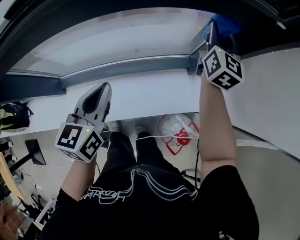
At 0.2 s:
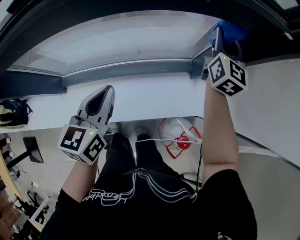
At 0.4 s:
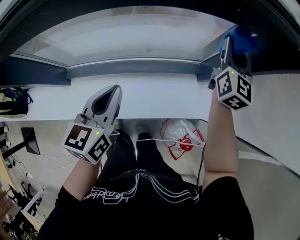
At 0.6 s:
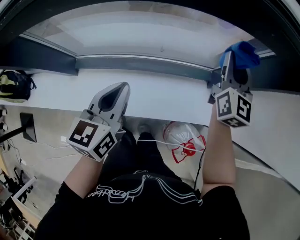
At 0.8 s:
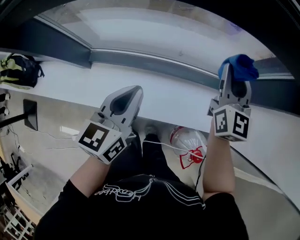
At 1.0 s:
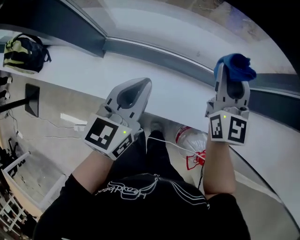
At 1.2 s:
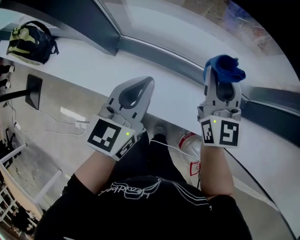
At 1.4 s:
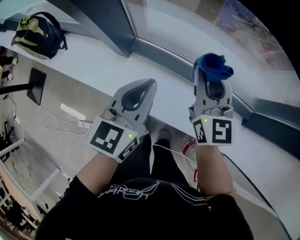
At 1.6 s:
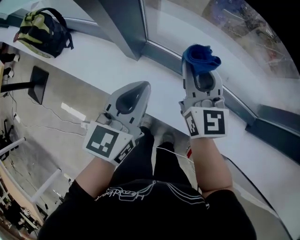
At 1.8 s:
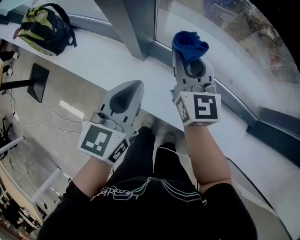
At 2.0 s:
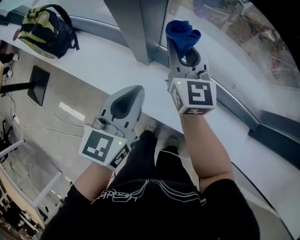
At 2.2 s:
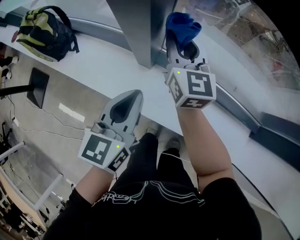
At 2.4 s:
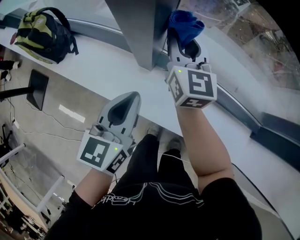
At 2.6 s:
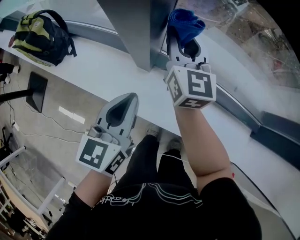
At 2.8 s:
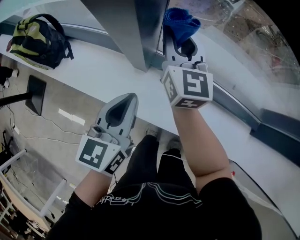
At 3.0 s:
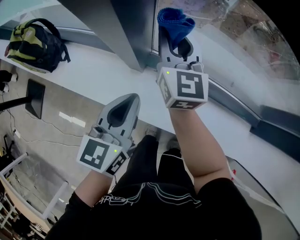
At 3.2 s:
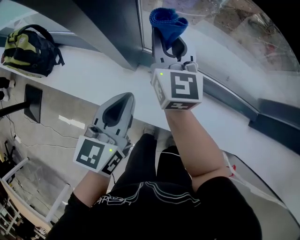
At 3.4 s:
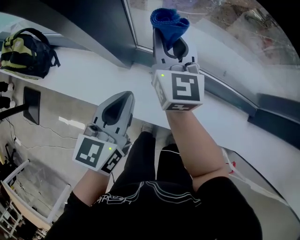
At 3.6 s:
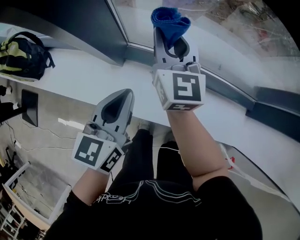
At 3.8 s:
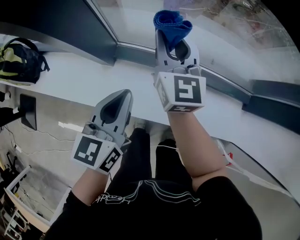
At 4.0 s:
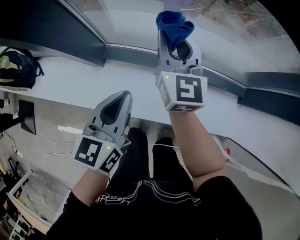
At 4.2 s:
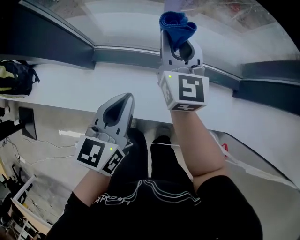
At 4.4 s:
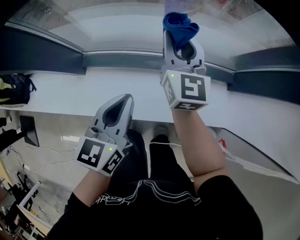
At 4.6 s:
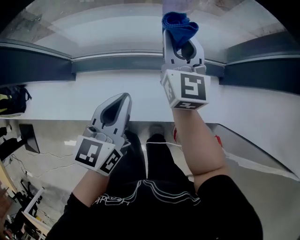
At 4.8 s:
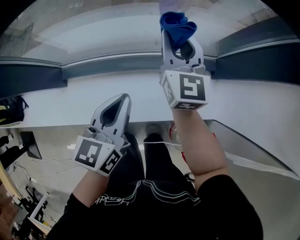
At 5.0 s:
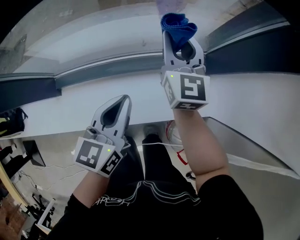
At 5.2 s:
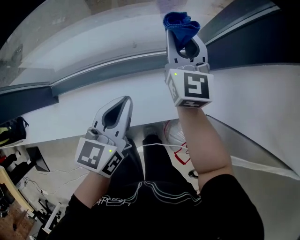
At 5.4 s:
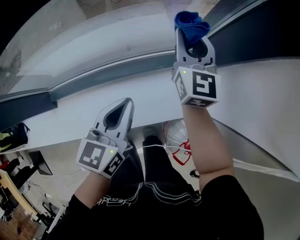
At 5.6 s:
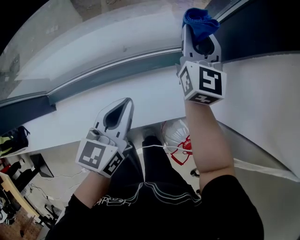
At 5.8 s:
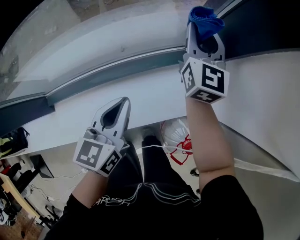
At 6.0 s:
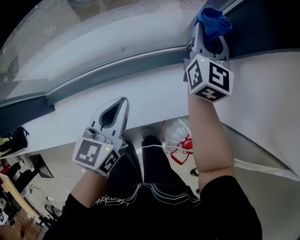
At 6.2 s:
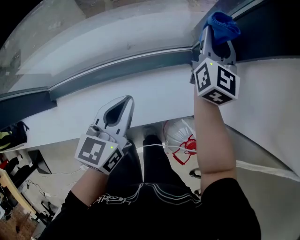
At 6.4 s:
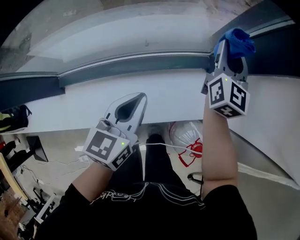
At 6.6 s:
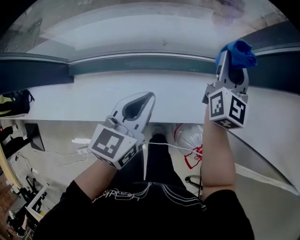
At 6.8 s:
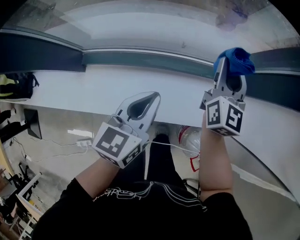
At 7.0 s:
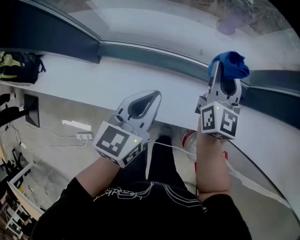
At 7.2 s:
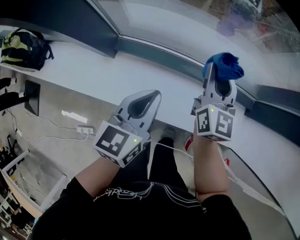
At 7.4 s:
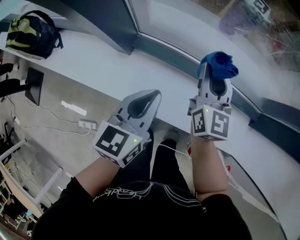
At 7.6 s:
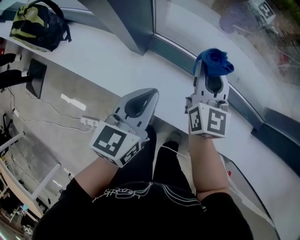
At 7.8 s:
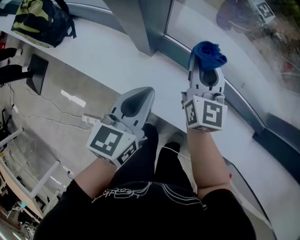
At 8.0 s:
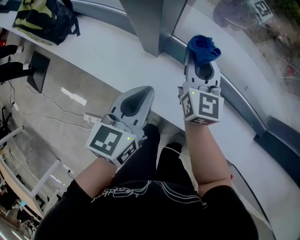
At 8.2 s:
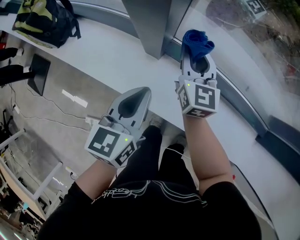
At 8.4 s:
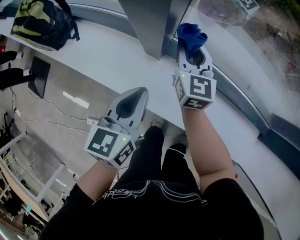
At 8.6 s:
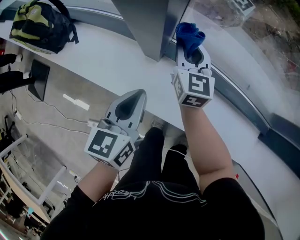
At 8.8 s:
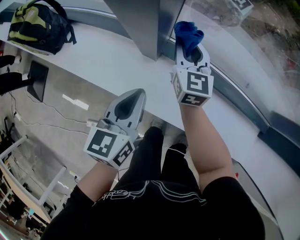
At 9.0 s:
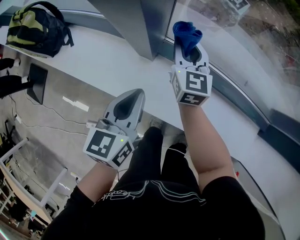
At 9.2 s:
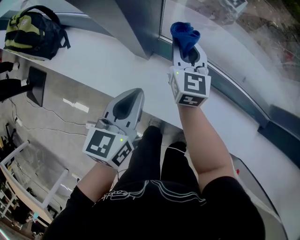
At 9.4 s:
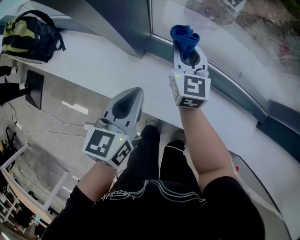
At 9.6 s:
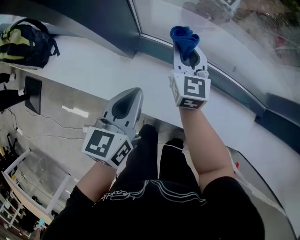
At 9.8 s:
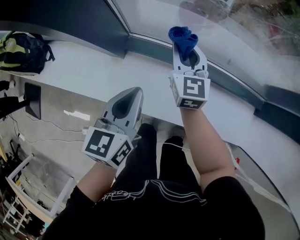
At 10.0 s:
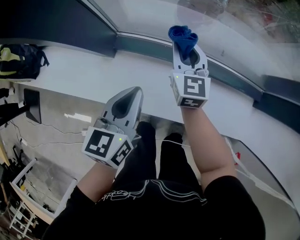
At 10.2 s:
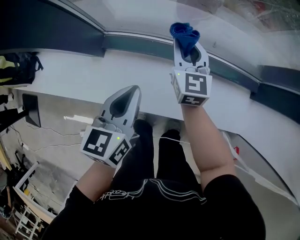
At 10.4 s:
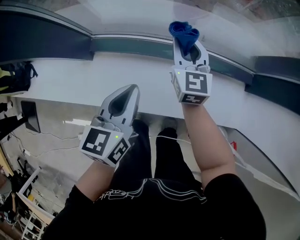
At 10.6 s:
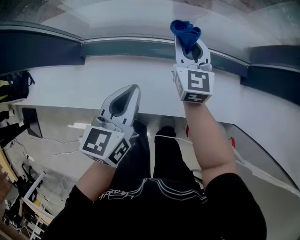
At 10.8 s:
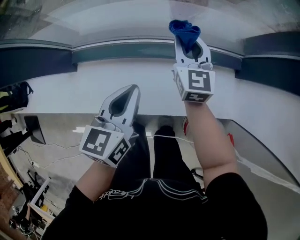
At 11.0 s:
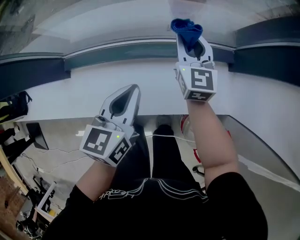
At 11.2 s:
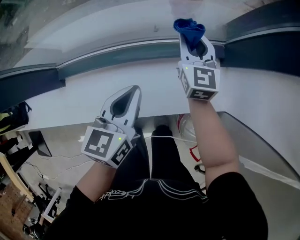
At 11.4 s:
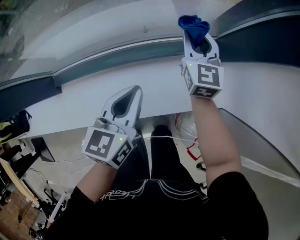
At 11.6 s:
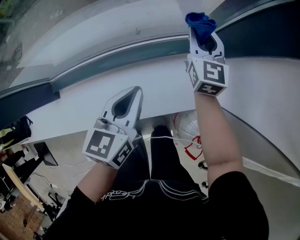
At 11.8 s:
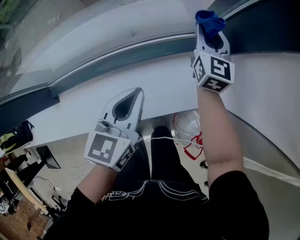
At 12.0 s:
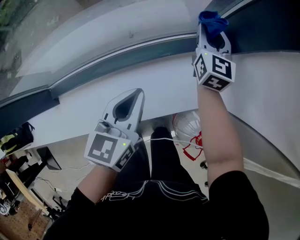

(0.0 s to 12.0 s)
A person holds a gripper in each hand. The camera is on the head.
0.0 s - 1.6 s: The right gripper shifts by some 60 cm, and rotates some 50 degrees. The left gripper shifts by about 35 cm, and turns by about 30 degrees.
1.6 s - 3.0 s: The right gripper moves forward and to the left, about 20 cm. The left gripper travels to the left by some 10 cm.
3.0 s - 4.4 s: Both grippers move to the right, roughly 35 cm.
4.4 s - 6.0 s: The left gripper ends up about 25 cm from where it was; the right gripper ends up about 40 cm from where it was, and rotates roughly 30 degrees.
6.0 s - 7.6 s: Both grippers are carried roughly 60 cm. The right gripper turns by roughly 50 degrees, while the left gripper rotates approximately 30 degrees.
7.6 s - 9.0 s: The right gripper is displaced to the left, downward and forward by some 20 cm. The left gripper heads to the left, covering about 10 cm.
9.0 s - 10.4 s: Both grippers travel together to the right, approximately 30 cm.
10.4 s - 12.0 s: The left gripper moves about 30 cm, and turns by roughly 30 degrees; the right gripper moves some 40 cm, and swivels about 30 degrees.

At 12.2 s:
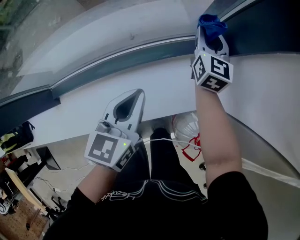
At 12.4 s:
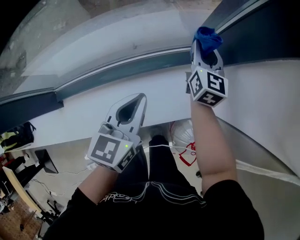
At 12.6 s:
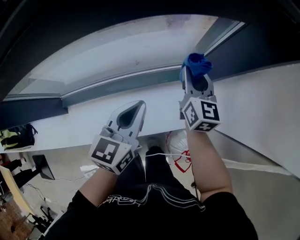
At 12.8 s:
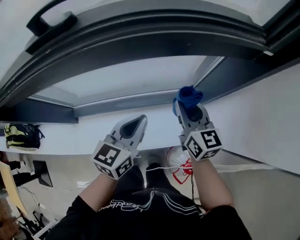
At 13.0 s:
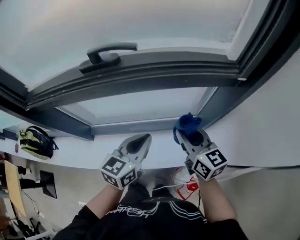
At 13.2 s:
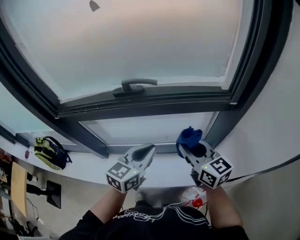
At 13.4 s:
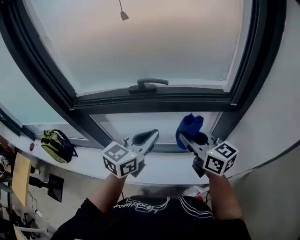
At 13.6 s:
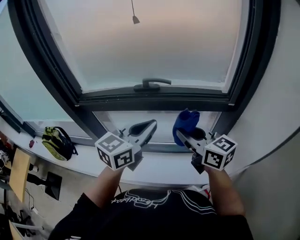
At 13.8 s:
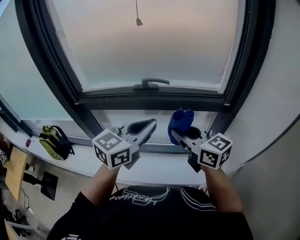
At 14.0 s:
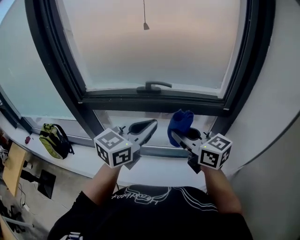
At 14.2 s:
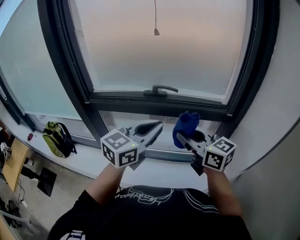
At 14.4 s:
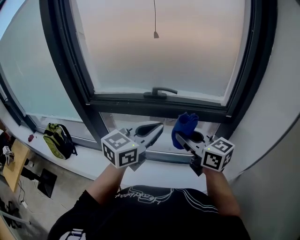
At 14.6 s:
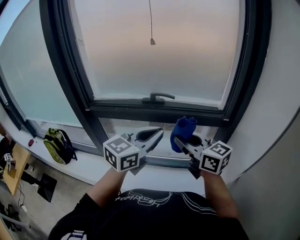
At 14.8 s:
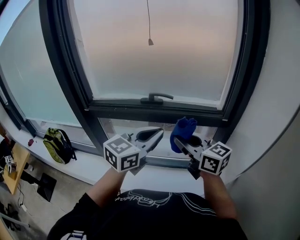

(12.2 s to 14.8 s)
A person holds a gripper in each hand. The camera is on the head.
12.2 s - 13.4 s: Both grippers travel together upward, some 40 cm. The right gripper swivels roughly 60 degrees. Meanwhile the left gripper turns by approximately 20 degrees.
13.4 s - 14.8 s: The grippers both shift upward and backward by roughly 10 cm.

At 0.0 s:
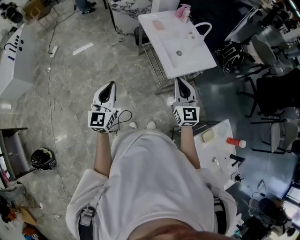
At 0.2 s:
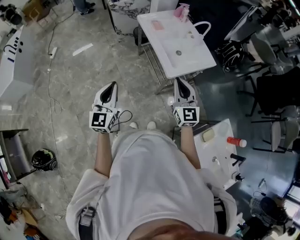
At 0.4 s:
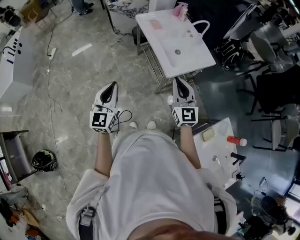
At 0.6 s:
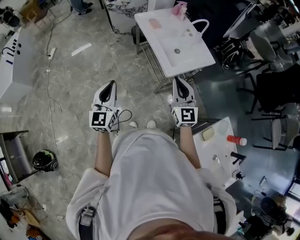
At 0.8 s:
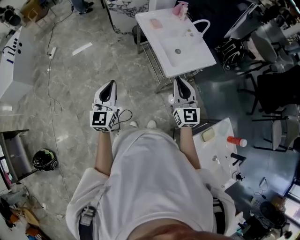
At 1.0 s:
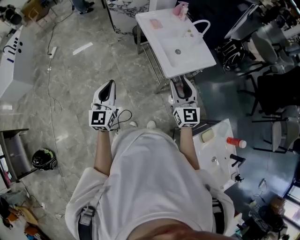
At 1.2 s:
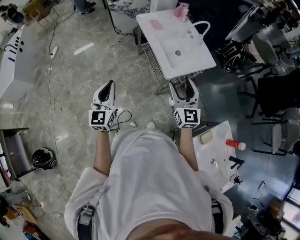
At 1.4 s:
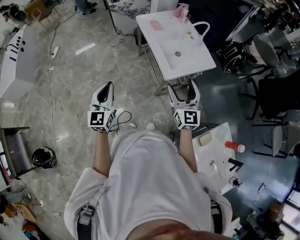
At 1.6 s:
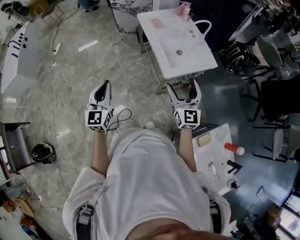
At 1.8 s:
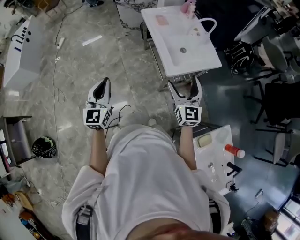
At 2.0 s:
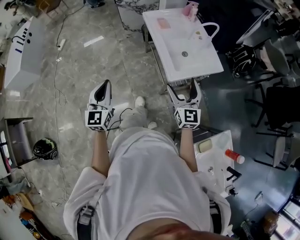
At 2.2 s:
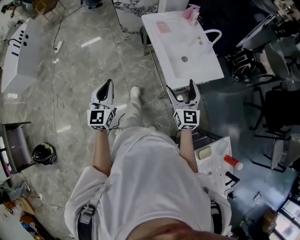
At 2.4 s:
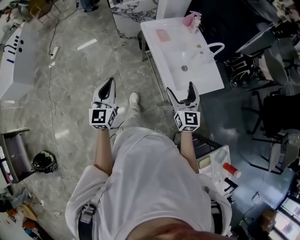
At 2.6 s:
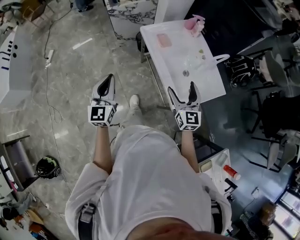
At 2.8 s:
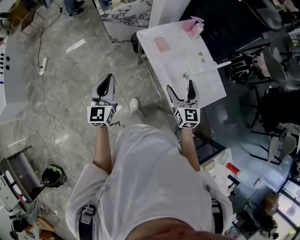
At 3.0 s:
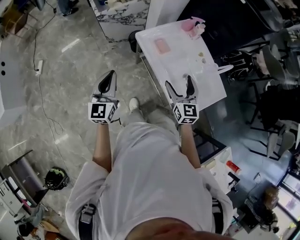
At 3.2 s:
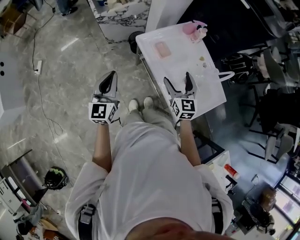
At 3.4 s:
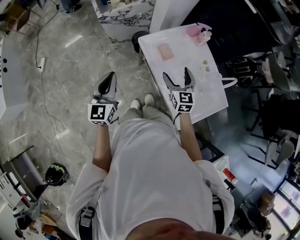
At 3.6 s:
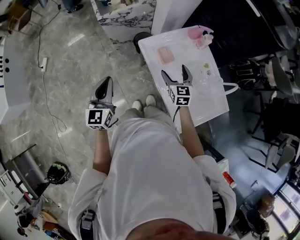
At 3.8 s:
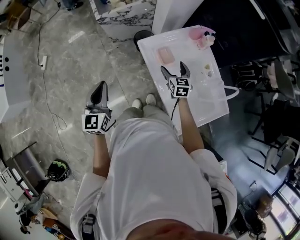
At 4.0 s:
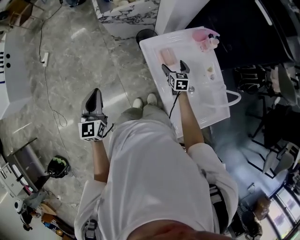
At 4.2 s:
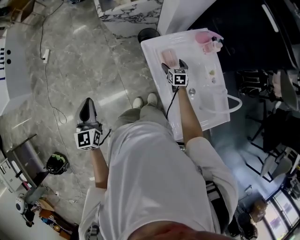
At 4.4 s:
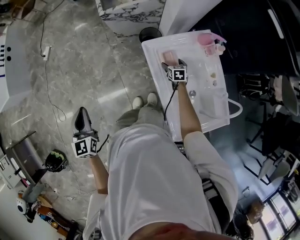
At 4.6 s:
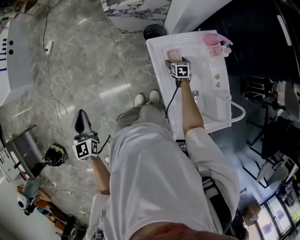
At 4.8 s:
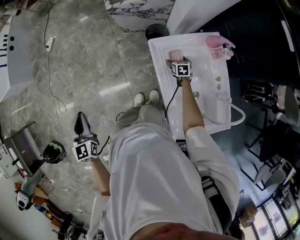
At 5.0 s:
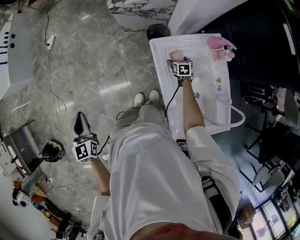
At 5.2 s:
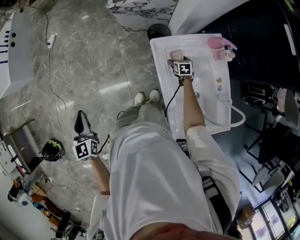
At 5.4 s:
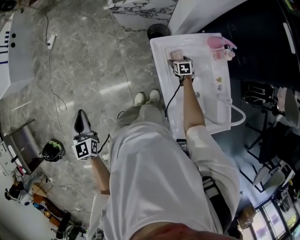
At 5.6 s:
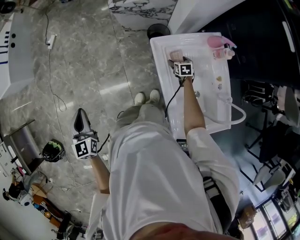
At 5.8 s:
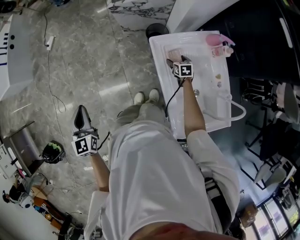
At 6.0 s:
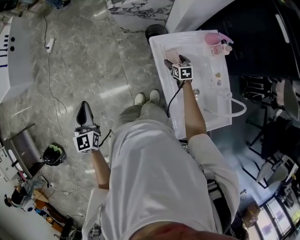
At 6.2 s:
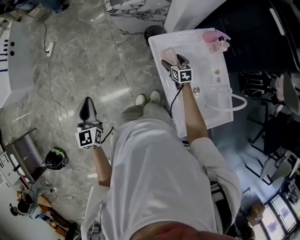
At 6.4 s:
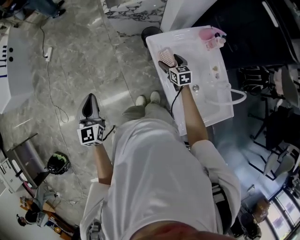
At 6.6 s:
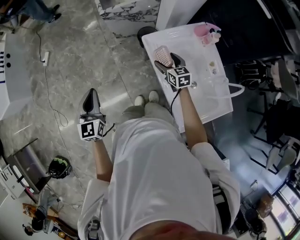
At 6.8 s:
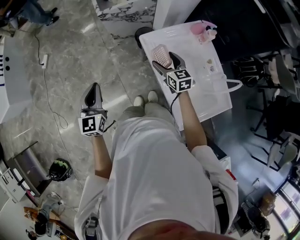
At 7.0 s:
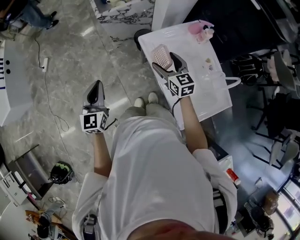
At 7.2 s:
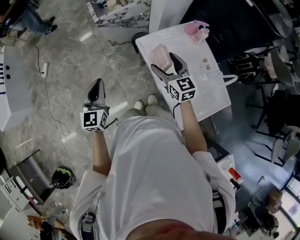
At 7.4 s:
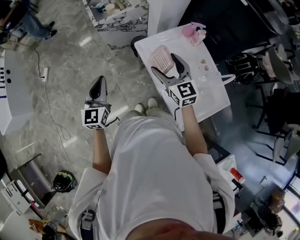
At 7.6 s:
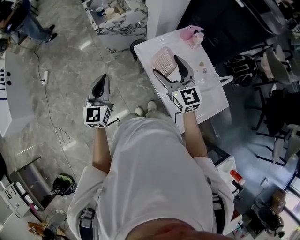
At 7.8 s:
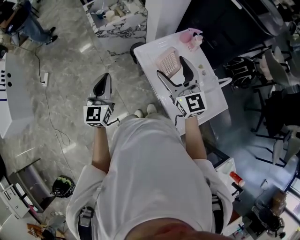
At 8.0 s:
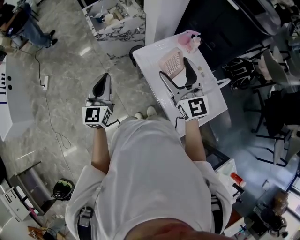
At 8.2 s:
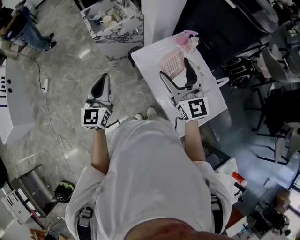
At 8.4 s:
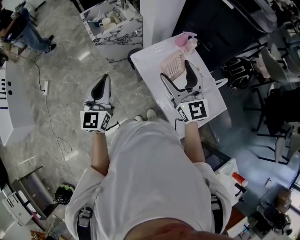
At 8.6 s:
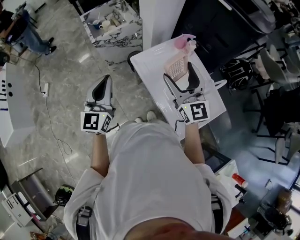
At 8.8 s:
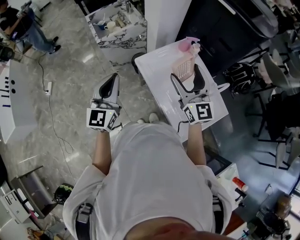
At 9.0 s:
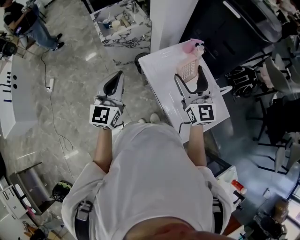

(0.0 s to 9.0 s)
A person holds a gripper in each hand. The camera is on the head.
0.0 s - 1.6 s: The right gripper goes some 5 cm to the right, and opens.
1.6 s - 3.0 s: Both grippers move forward, roughly 40 cm.
3.0 s - 4.4 s: The left gripper shifts roughly 10 cm to the left, and turns by about 30 degrees; the right gripper heads downward and forward, covering approximately 40 cm, and angles its fingers downward, by roughly 40 degrees.
4.4 s - 6.0 s: The right gripper shifts by approximately 5 cm.
6.0 s - 7.6 s: The right gripper goes some 35 cm upward, and tilts its fingers approximately 40 degrees upward; the left gripper is displaced to the right and forward by about 15 cm, and changes its angle by some 30 degrees.
7.6 s - 9.0 s: The two grippers go roughly 10 cm upward and to the right.
